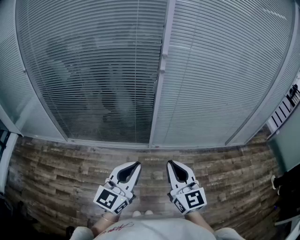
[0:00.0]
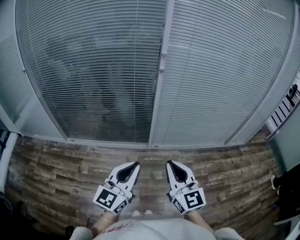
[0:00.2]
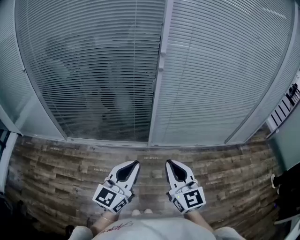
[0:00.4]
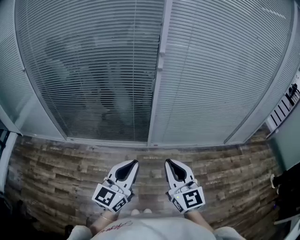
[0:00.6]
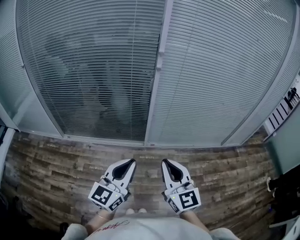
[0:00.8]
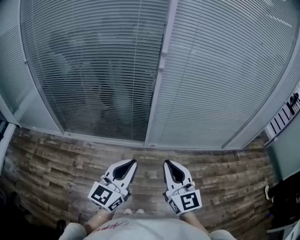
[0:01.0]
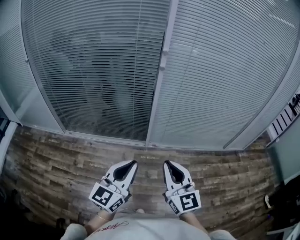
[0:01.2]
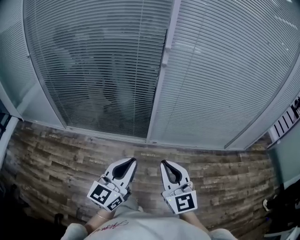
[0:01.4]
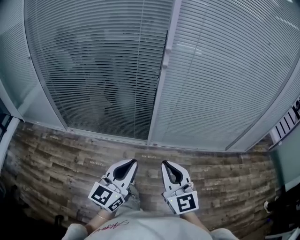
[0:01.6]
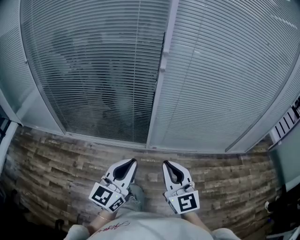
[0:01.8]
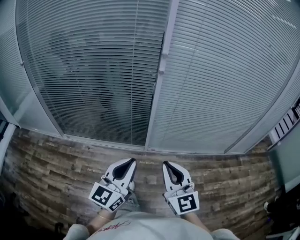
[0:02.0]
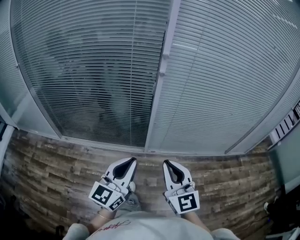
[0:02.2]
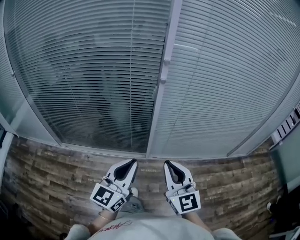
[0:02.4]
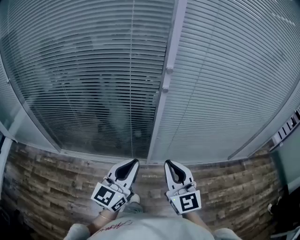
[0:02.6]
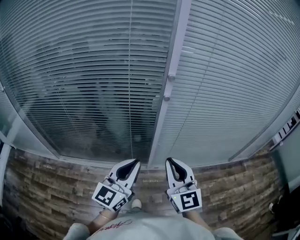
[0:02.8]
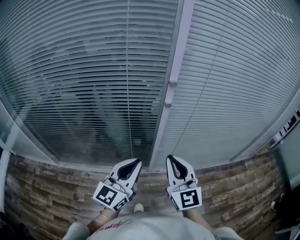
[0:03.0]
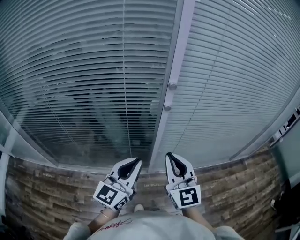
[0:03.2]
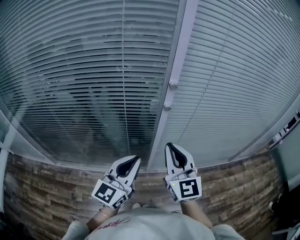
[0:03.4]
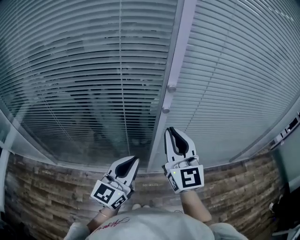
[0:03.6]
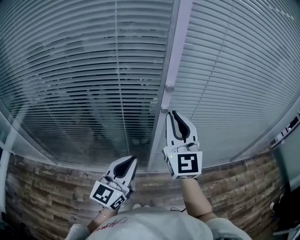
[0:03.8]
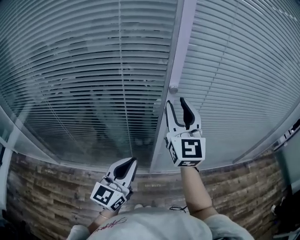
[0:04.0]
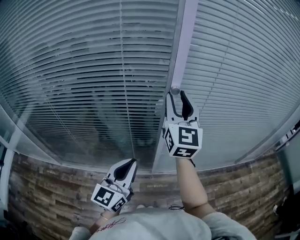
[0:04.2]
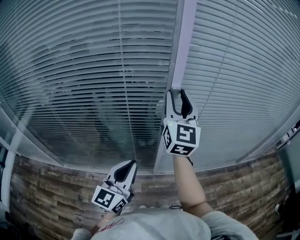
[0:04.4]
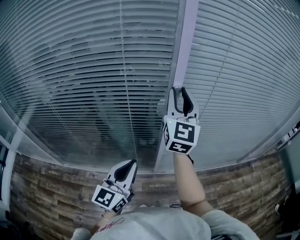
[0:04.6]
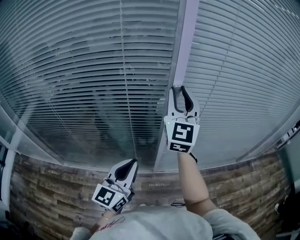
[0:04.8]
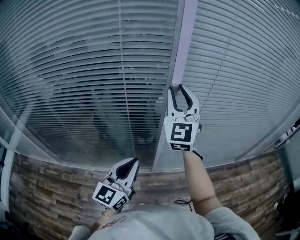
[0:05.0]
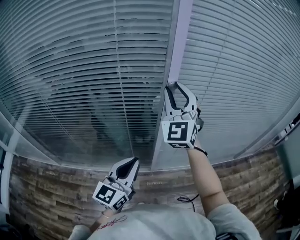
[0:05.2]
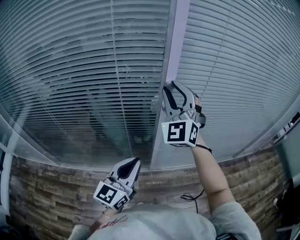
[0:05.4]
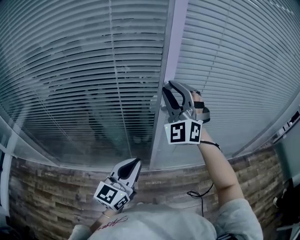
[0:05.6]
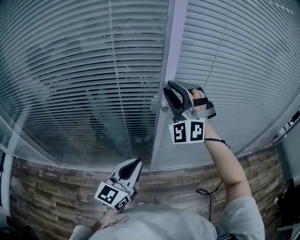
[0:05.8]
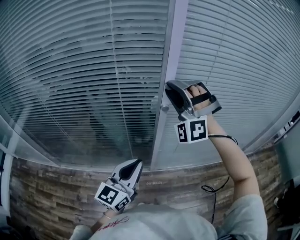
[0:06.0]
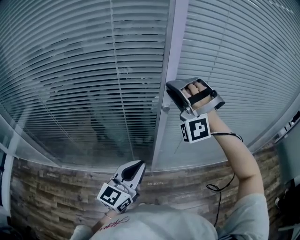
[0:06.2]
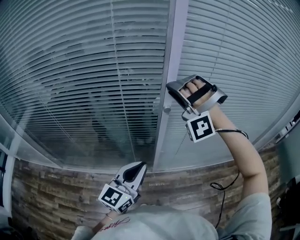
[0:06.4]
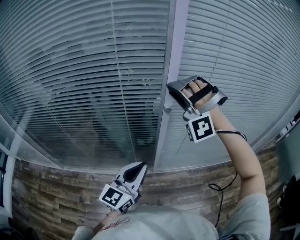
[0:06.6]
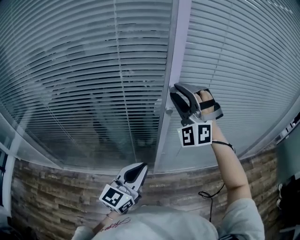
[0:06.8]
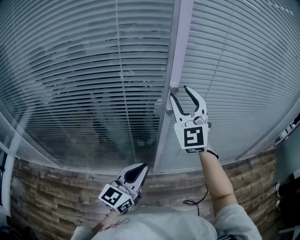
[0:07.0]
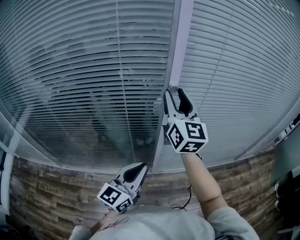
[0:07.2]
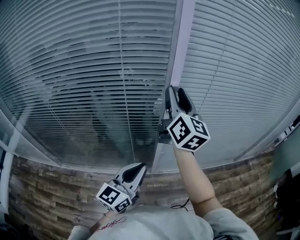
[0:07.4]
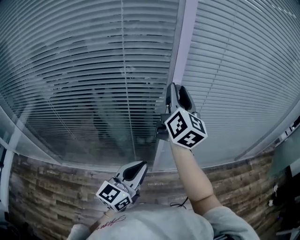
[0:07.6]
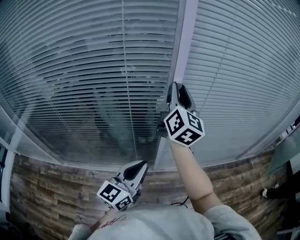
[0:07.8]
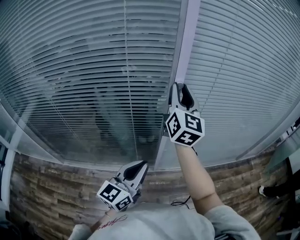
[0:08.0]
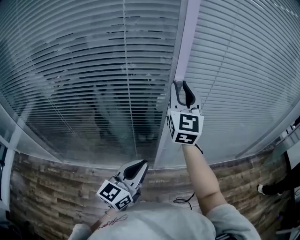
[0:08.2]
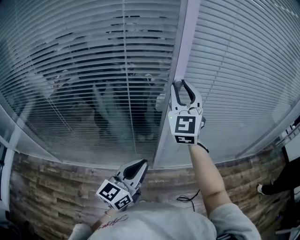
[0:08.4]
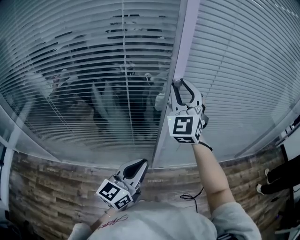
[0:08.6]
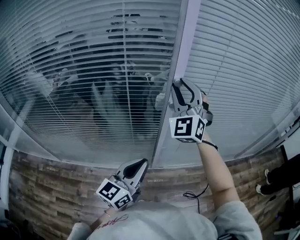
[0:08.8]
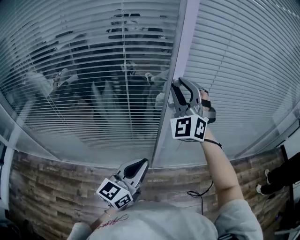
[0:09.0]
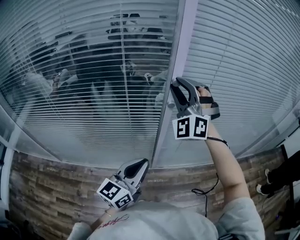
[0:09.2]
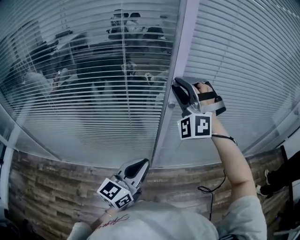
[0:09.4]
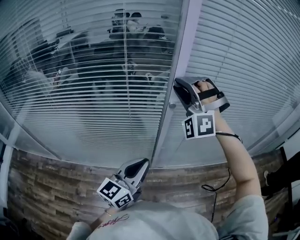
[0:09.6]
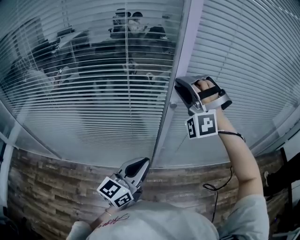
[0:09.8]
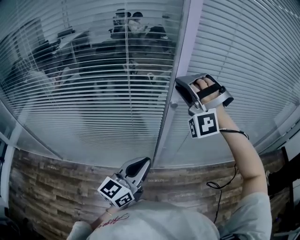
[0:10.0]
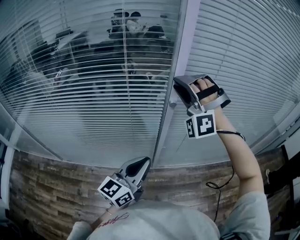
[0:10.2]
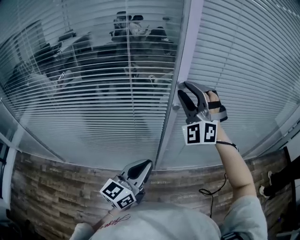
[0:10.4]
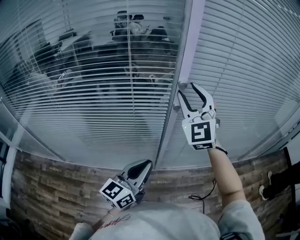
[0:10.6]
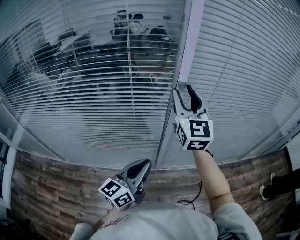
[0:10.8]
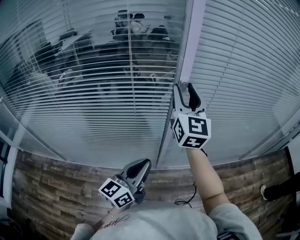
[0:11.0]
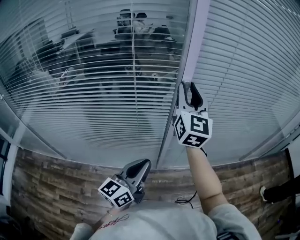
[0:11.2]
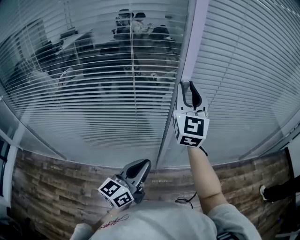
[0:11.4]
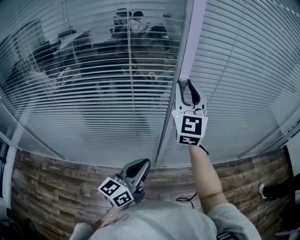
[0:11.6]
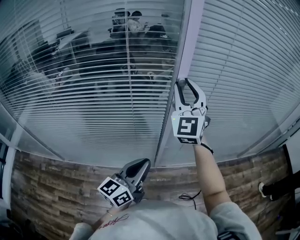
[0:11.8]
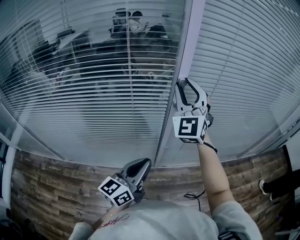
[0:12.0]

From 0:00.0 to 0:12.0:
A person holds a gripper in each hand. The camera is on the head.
From 0:00.0 to 0:01.6: There are only small adjustments of the grippers.
From 0:01.6 to 0:03.0: Both grippers move forward, some 30 cm.
From 0:03.0 to 0:04.4: The right gripper heads forward and upward, covering approximately 25 cm, turns by about 20 degrees, and opens its fingers.
From 0:04.4 to 0:06.0: The right gripper twists about 90 degrees counterclockwise, seen from behind.
From 0:06.0 to 0:07.6: The right gripper twists about 120 degrees clockwise, seen from behind.
From 0:07.6 to 0:09.0: The right gripper rolls counterclockwise, seen from behind, by approximately 80 degrees.
From 0:10.4 to 0:12.0: The right gripper turns by roughly 30 degrees.

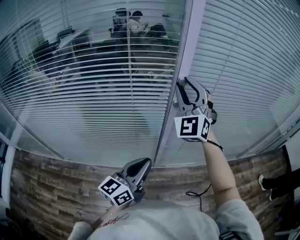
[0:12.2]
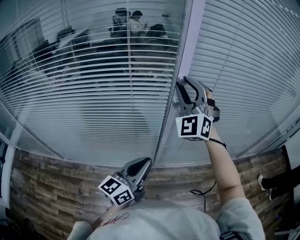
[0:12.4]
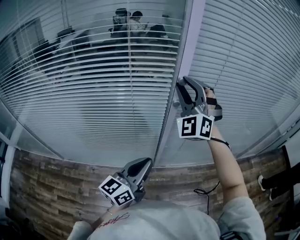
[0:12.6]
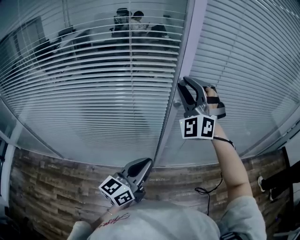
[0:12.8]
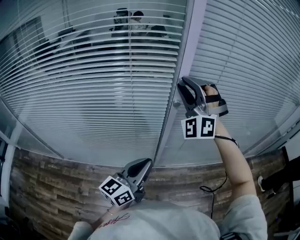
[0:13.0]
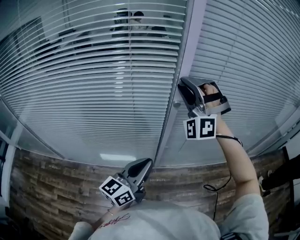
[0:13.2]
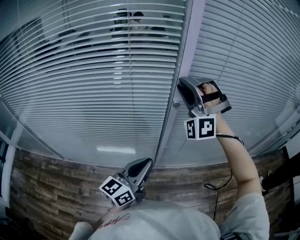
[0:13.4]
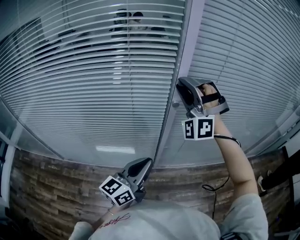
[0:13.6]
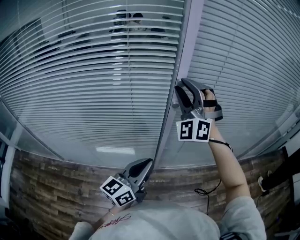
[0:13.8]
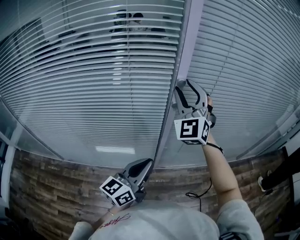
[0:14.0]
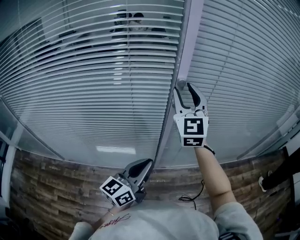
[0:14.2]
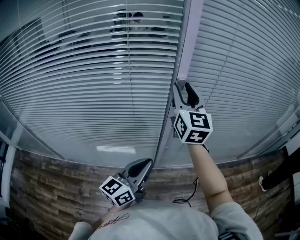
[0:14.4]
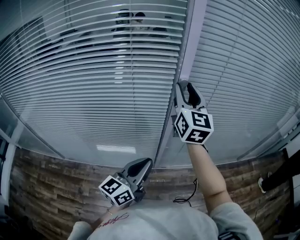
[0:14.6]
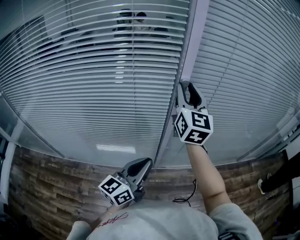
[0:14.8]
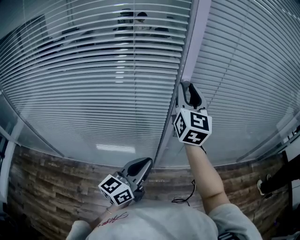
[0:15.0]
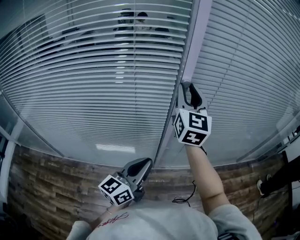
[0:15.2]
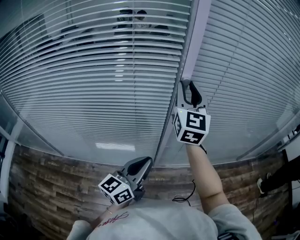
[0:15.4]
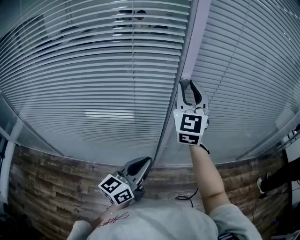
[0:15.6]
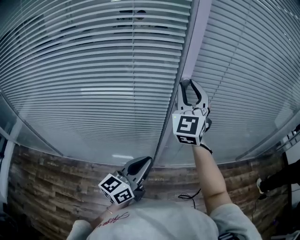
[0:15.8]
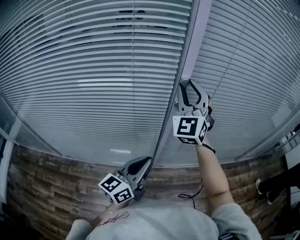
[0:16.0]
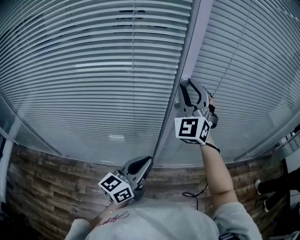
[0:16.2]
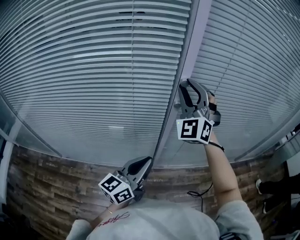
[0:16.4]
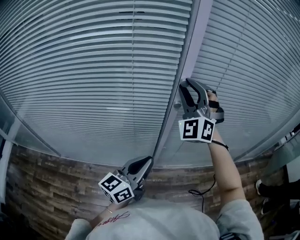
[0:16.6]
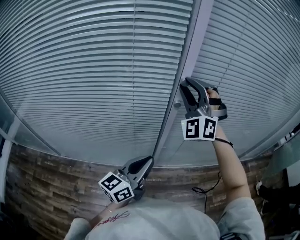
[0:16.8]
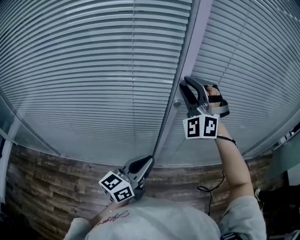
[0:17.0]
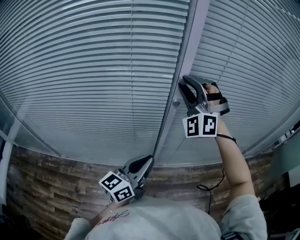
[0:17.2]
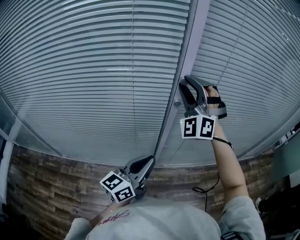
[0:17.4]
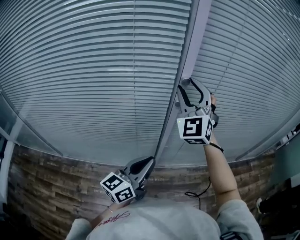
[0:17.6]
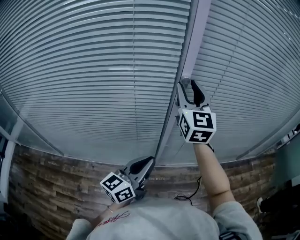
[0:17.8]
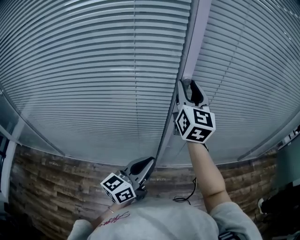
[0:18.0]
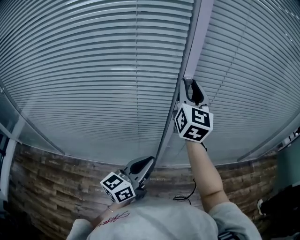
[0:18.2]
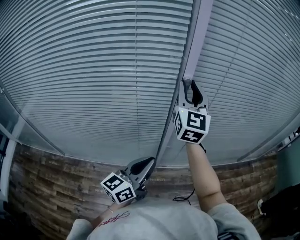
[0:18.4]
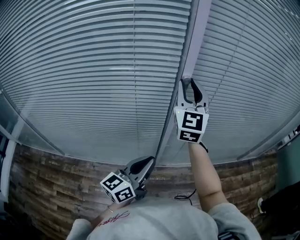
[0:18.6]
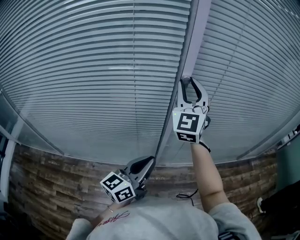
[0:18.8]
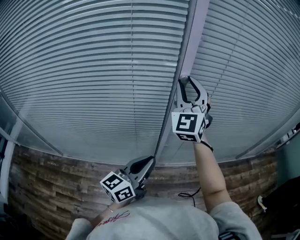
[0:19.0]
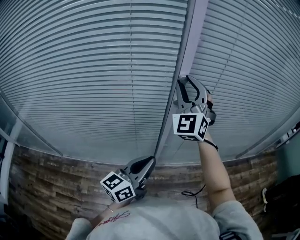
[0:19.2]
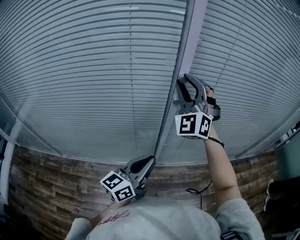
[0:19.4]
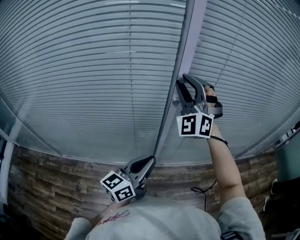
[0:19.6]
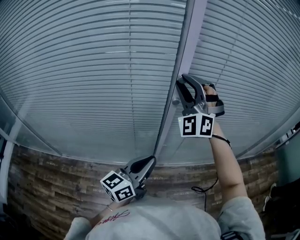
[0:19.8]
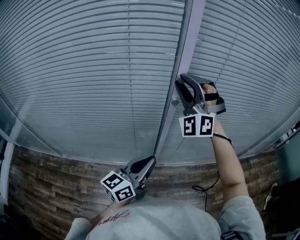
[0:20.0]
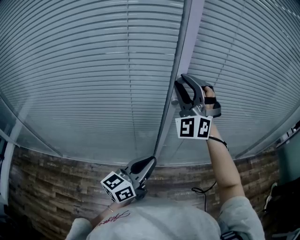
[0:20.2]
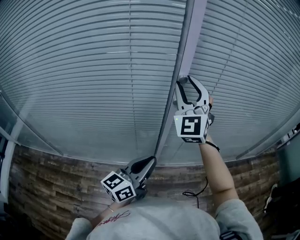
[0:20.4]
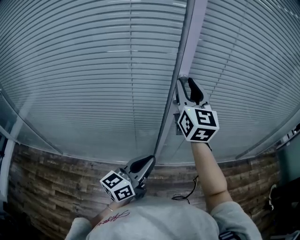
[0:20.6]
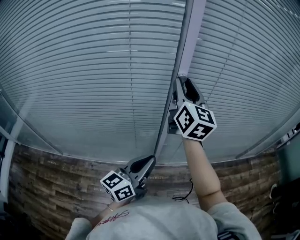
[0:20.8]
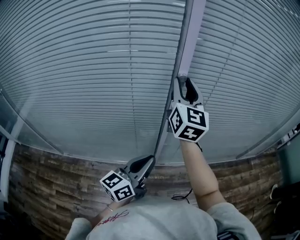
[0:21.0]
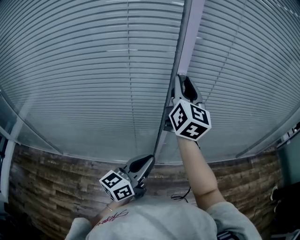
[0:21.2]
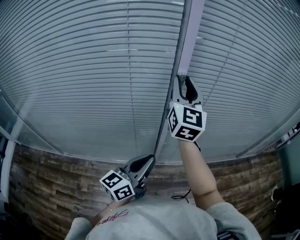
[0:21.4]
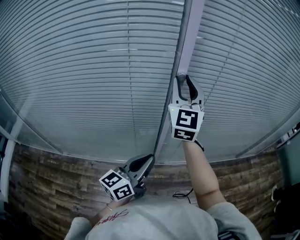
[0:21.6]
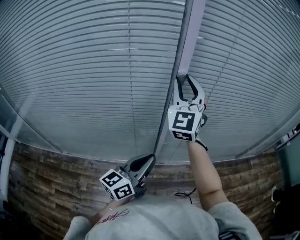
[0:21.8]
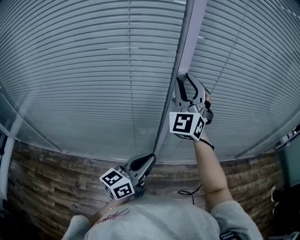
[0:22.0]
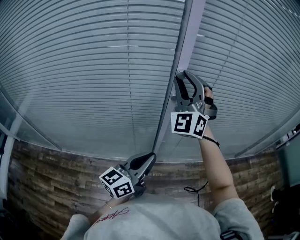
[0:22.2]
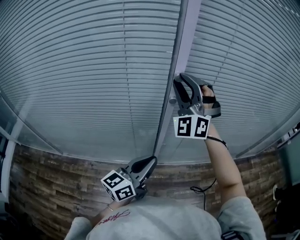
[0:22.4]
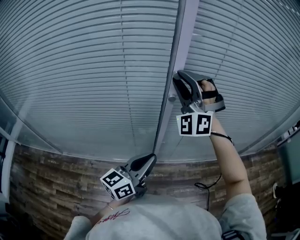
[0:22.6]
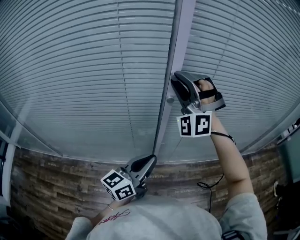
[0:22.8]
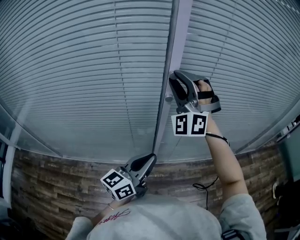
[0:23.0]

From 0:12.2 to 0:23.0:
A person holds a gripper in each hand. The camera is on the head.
From 0:12.2 to 0:13.8: The right gripper rotates some 20 degrees.
From 0:13.8 to 0:15.2: The right gripper rolls clockwise, seen from behind, by about 70 degrees.
From 0:15.2 to 0:16.8: The right gripper rotates around the line of its fingers by roughly 70 degrees, counterclockwise from behind.
From 0:16.8 to 0:18.4: The right gripper rolls clockwise, seen from behind, by approximately 70 degrees.
From 0:18.4 to 0:20.0: The right gripper rotates around the line of its fingers by roughly 70 degrees, counterclockwise from behind.
From 0:20.0 to 0:21.4: The right gripper rotates around the line of its fingers by about 80 degrees, clockwise from behind.
From 0:21.4 to 0:23.0: The right gripper rolls counterclockwise, seen from behind, by some 80 degrees.

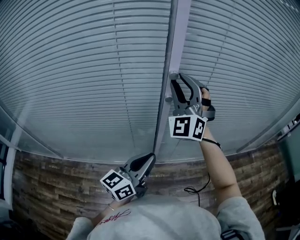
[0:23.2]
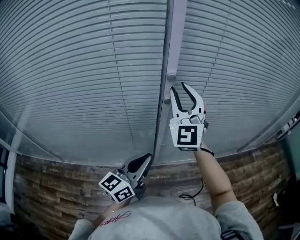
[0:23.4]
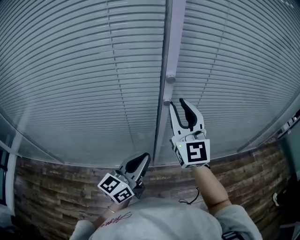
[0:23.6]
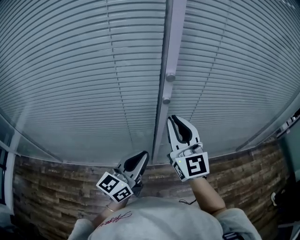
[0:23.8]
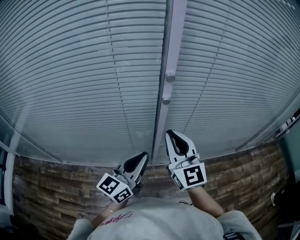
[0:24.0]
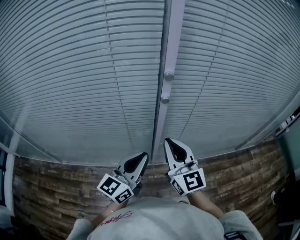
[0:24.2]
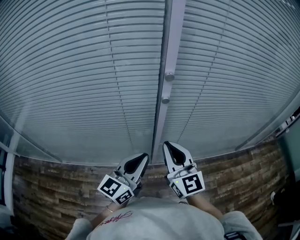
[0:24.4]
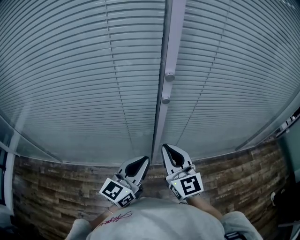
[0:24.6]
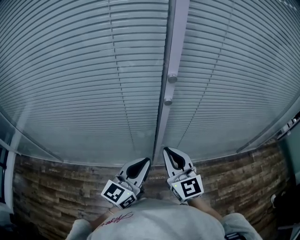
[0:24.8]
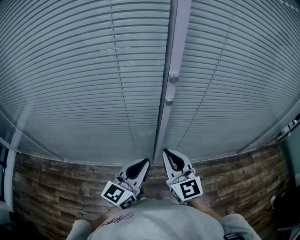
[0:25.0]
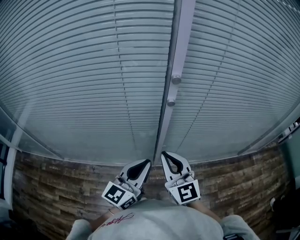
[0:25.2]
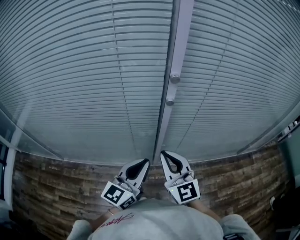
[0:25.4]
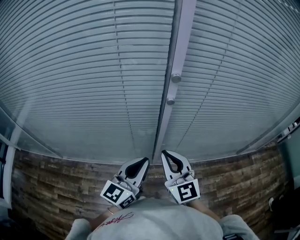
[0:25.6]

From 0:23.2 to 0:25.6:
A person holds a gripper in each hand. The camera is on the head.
From 0:23.2 to 0:24.4: The right gripper heads backward and downward, covering roughly 20 cm, rotates around the line of its fingers by about 60 degrees, clockwise from behind, and closes up.
From 0:24.4 to 0:25.6: The grippers make only small movements.
